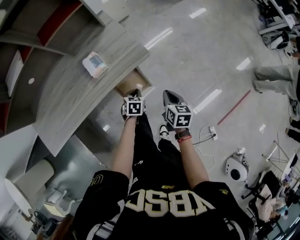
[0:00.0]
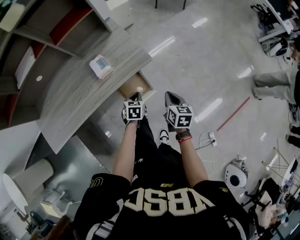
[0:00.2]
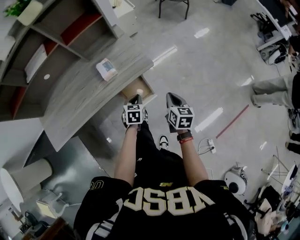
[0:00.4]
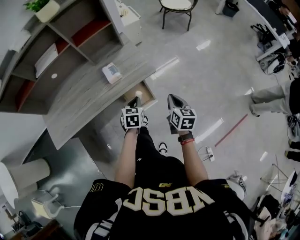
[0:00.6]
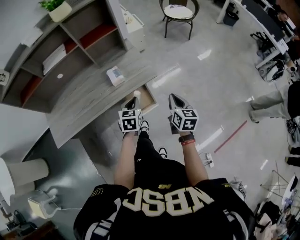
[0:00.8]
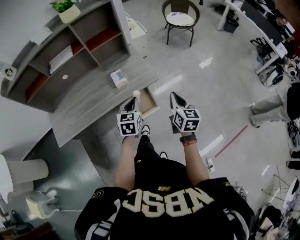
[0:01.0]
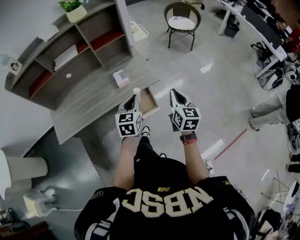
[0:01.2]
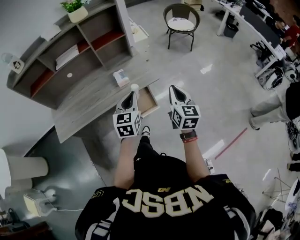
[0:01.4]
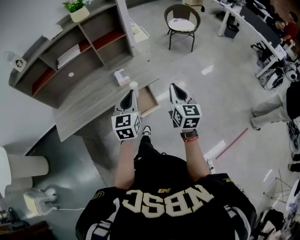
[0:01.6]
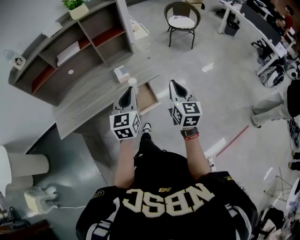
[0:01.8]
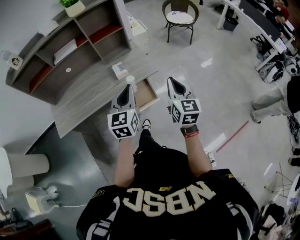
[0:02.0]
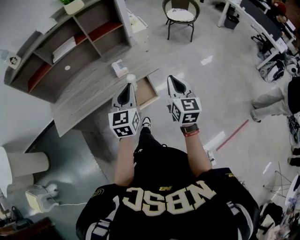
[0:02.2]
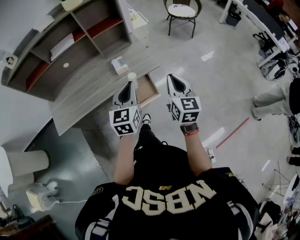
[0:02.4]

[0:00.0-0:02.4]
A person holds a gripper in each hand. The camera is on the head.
0:00.0 to 0:01.2: Both grippers move upward, about 30 cm. The left gripper angles its fingers upward, by roughly 40 degrees; the right gripper swivels some 30 degrees.
0:01.2 to 0:02.4: The left gripper heads upward, covering some 5 cm.

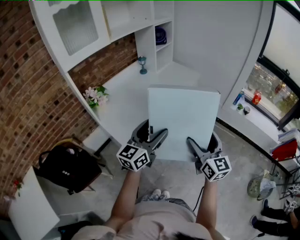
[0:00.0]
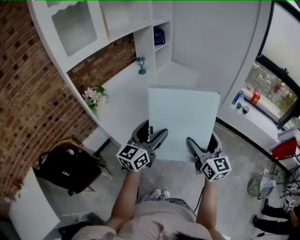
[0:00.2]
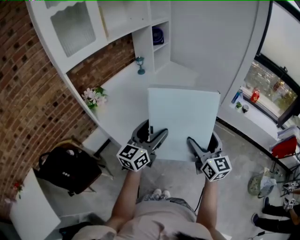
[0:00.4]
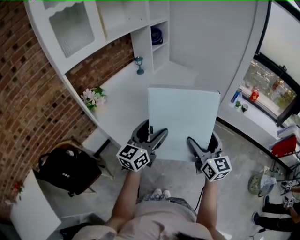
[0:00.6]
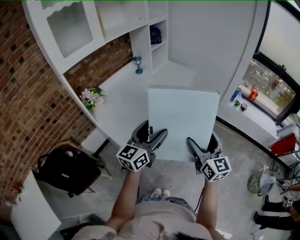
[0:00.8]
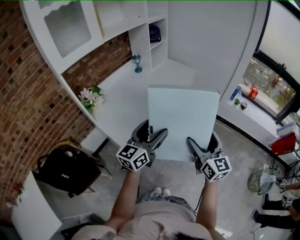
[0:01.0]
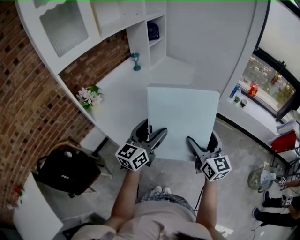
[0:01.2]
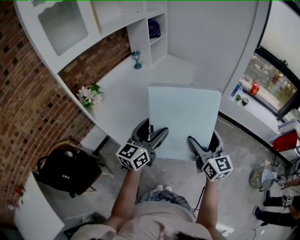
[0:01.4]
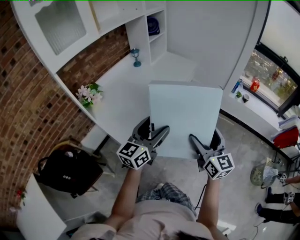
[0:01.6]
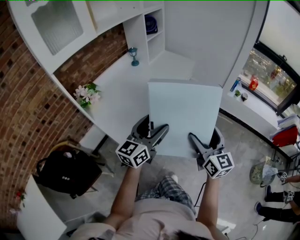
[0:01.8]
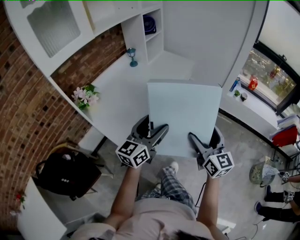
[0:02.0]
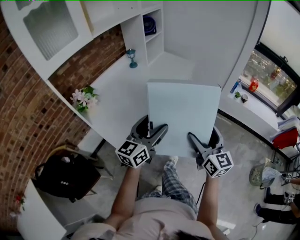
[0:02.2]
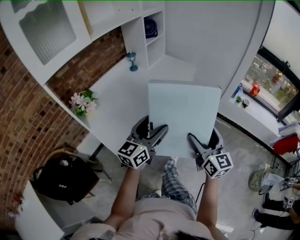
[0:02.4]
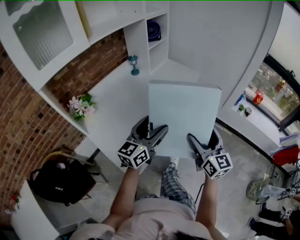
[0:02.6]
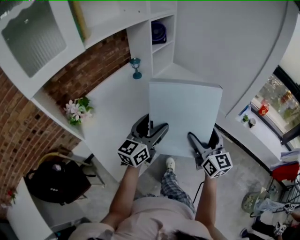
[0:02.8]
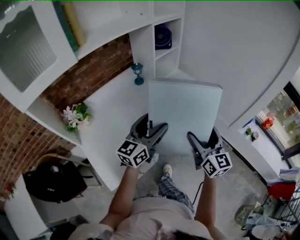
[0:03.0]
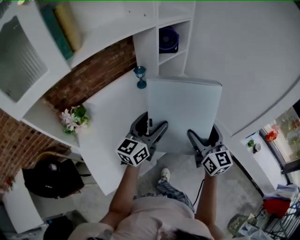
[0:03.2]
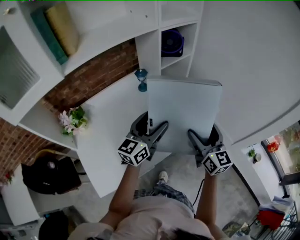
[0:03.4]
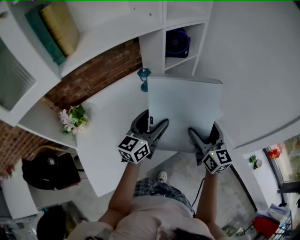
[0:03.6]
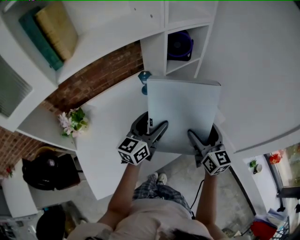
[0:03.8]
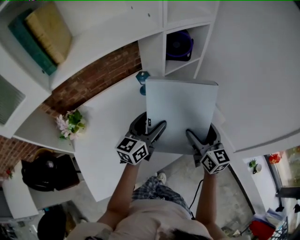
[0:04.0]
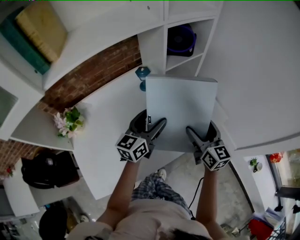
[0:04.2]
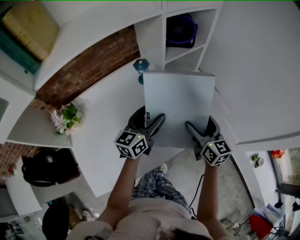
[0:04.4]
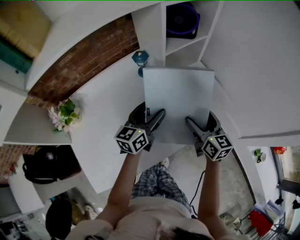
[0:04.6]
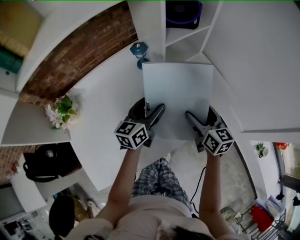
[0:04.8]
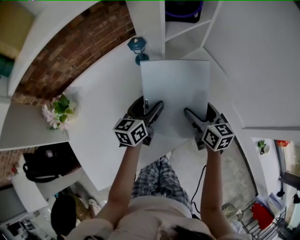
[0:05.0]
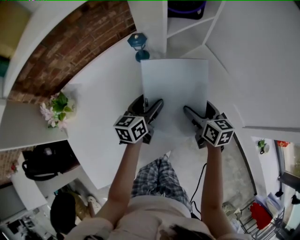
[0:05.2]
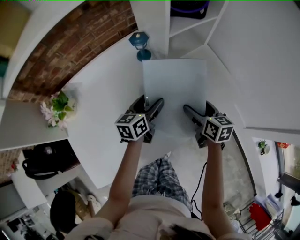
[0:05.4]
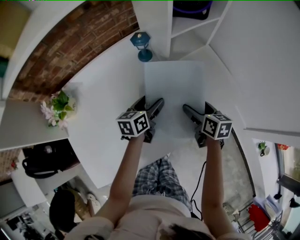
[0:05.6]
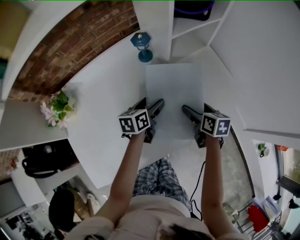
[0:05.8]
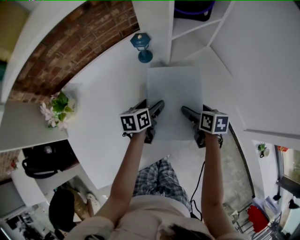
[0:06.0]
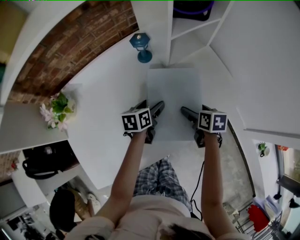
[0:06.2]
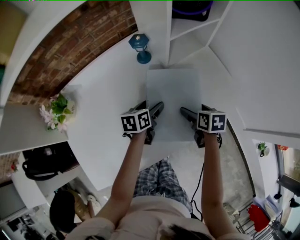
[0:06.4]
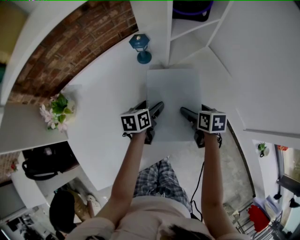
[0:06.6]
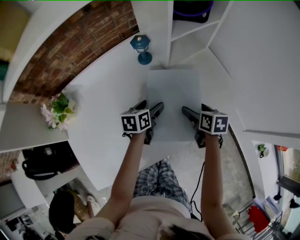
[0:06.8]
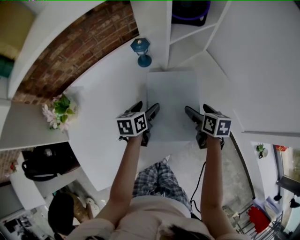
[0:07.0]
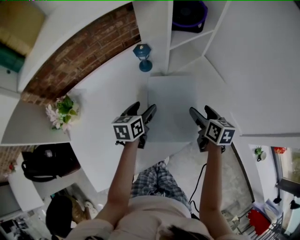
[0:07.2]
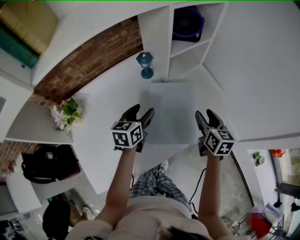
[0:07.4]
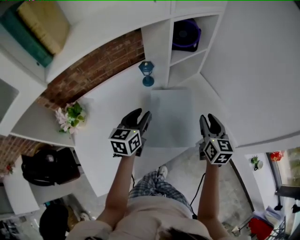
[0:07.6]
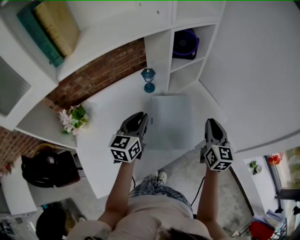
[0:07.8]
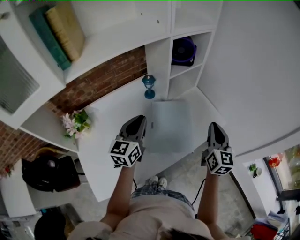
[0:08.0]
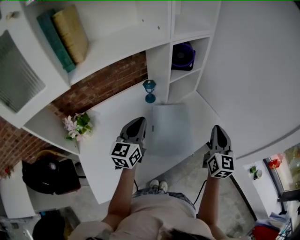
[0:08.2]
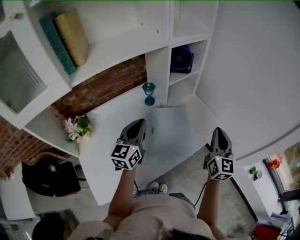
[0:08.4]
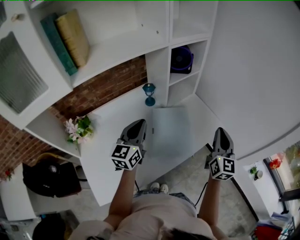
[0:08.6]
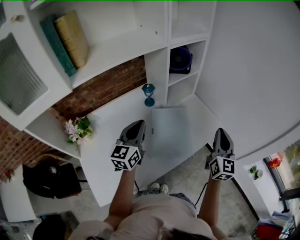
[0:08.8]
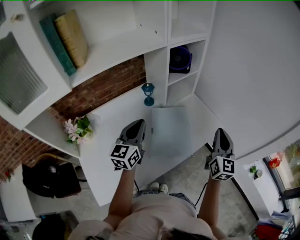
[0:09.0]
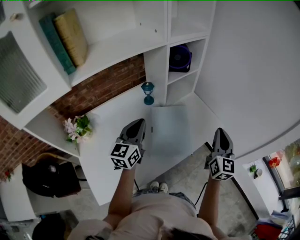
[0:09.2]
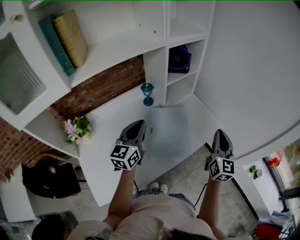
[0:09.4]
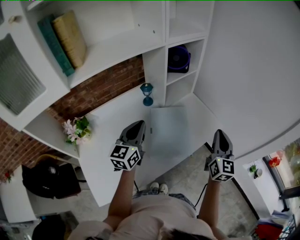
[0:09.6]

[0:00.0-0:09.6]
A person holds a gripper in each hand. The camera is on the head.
0:00.0 to 0:01.6: The grippers make only small movements.
0:01.6 to 0:03.2: Both grippers are carried forward, about 40 cm.
0:03.2 to 0:04.8: Both grippers travel together forward and downward, roughly 25 cm. The right gripper turns by approximately 30 degrees; the left gripper rotates roughly 20 degrees.
0:04.8 to 0:06.4: Both grippers travel together downward, roughly 15 cm. The right gripper tilts its fingers some 30 degrees downward; the left gripper turns by approximately 30 degrees.
0:06.4 to 0:08.0: Both grippers move upward, about 25 cm. The left gripper points its fingers about 40 degrees further upward, and closes; the right gripper tips its fingers upward by some 50 degrees, and closes.
0:08.0 to 0:09.6: The right gripper ends up some 5 cm from where it was.

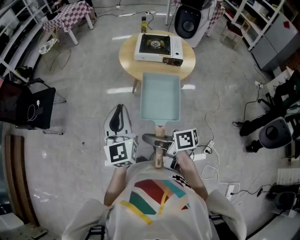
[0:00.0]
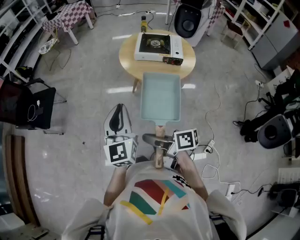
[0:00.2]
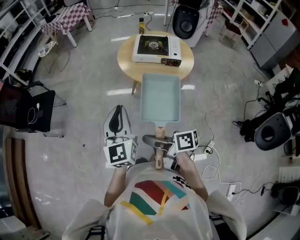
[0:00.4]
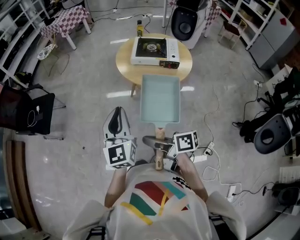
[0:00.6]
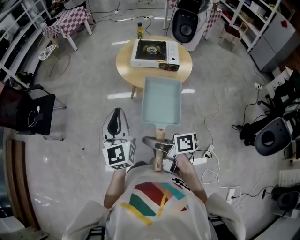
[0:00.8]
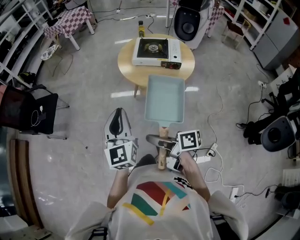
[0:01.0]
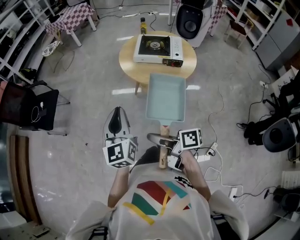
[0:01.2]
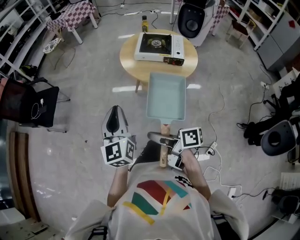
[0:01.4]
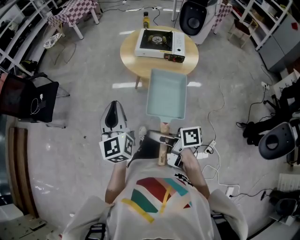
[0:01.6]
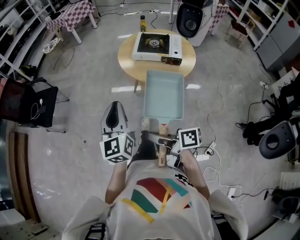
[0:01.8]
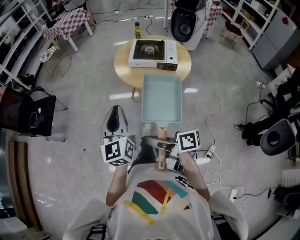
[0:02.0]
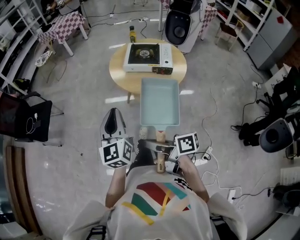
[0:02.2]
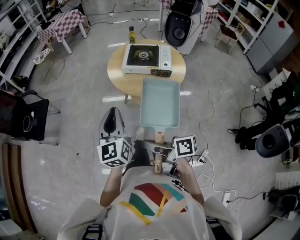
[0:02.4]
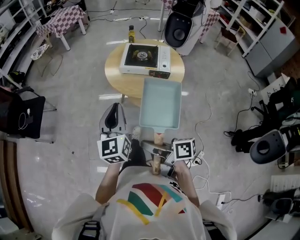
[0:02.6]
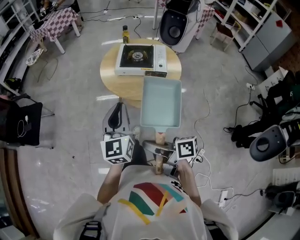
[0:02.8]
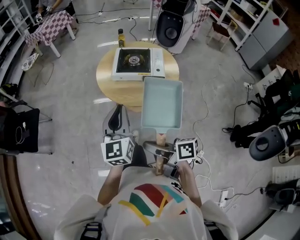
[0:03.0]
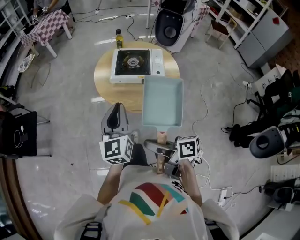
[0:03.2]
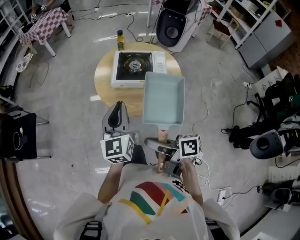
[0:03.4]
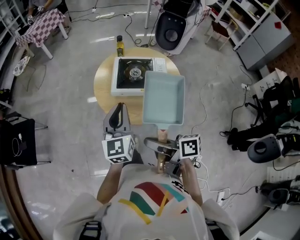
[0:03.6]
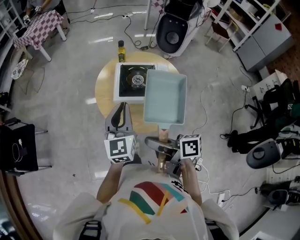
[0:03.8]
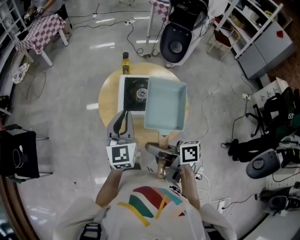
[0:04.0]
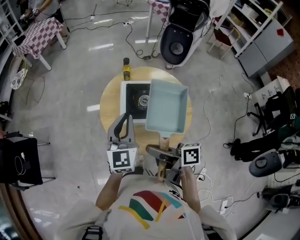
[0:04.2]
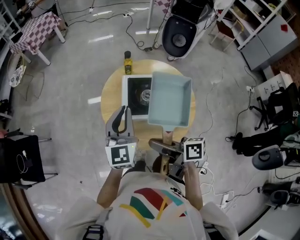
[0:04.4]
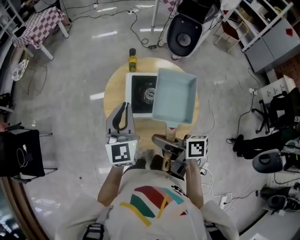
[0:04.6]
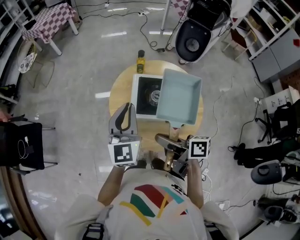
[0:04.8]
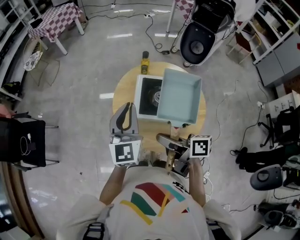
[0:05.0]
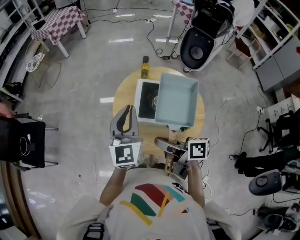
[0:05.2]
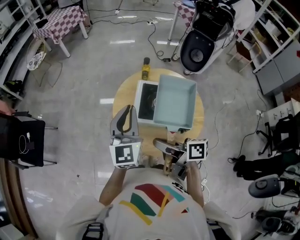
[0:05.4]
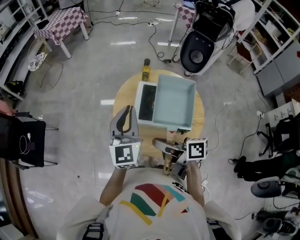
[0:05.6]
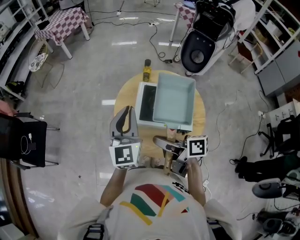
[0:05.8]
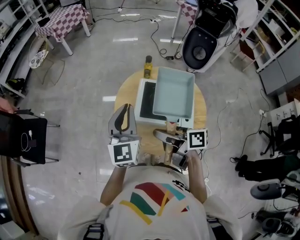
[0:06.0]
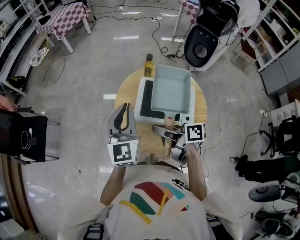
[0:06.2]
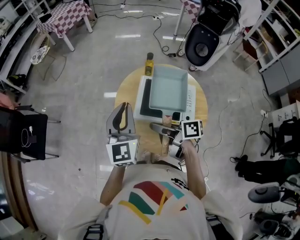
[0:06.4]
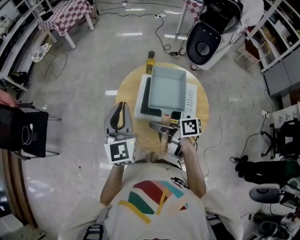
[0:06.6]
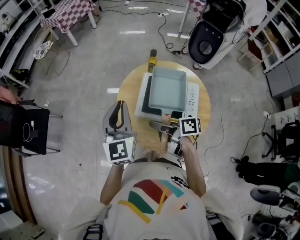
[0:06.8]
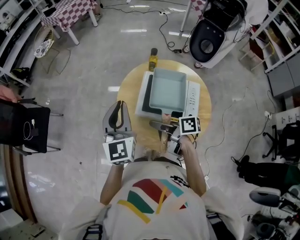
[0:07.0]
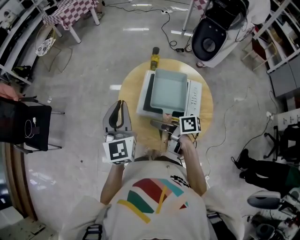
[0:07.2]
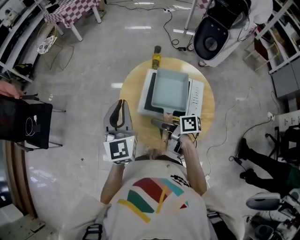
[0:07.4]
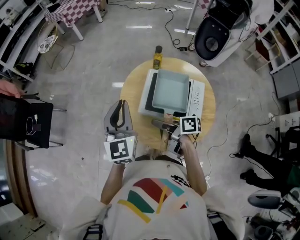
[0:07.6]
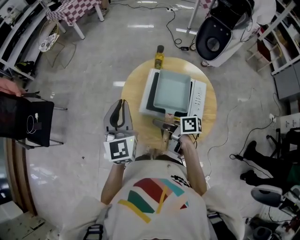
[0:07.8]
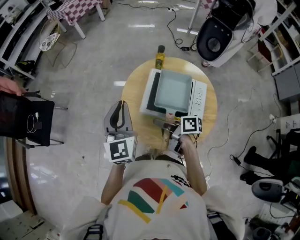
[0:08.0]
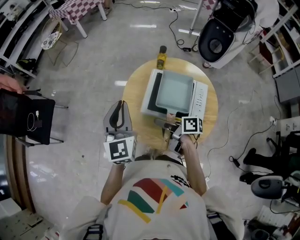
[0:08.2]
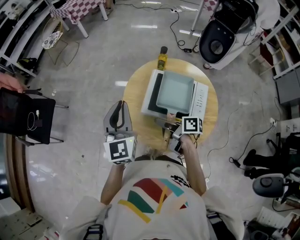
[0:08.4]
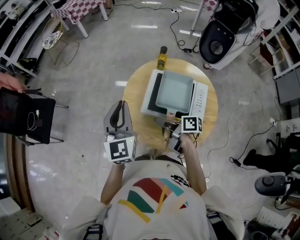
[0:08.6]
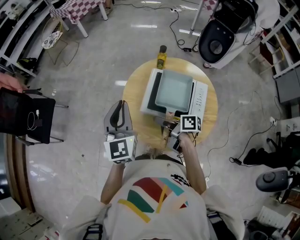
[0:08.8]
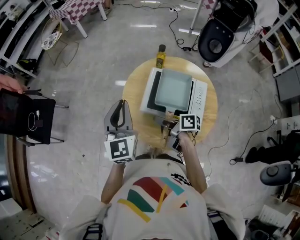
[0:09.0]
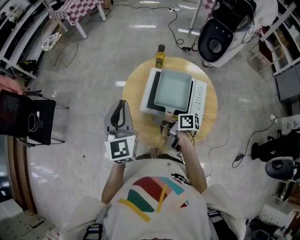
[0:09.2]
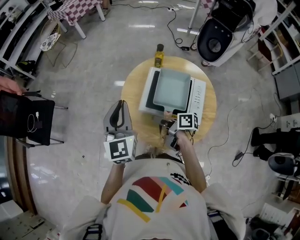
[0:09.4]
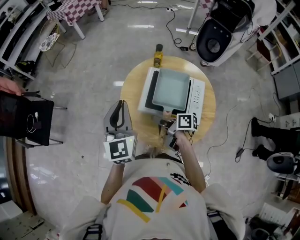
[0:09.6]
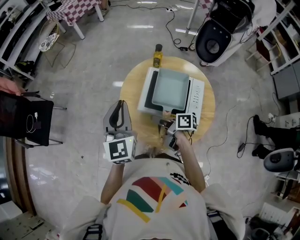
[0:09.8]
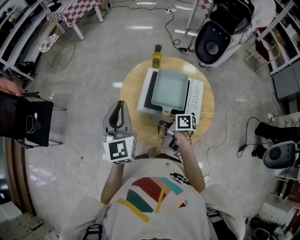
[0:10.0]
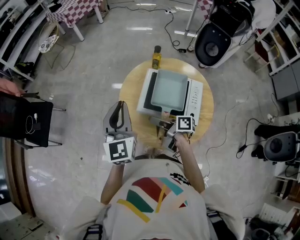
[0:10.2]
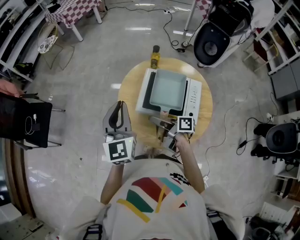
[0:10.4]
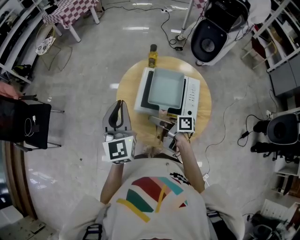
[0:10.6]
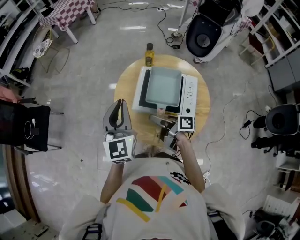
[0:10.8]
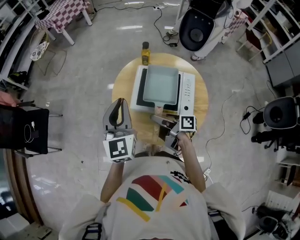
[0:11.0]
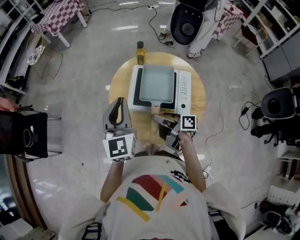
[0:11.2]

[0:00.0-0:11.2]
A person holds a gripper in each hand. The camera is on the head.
0:00.0 to 0:01.6: The right gripper shifts about 5 cm to the right.
0:01.6 to 0:03.2: The grippers both shift to the right and forward by roughly 20 cm.
0:03.2 to 0:04.8: Both grippers move forward, some 30 cm.
0:04.8 to 0:06.4: The right gripper is displaced forward by about 5 cm.
0:06.4 to 0:08.0: The right gripper is displaced downward by about 5 cm.
0:08.0 to 0:09.6: The grippers stay close to where they were, moving slightly.
0:09.6 to 0:11.2: The left gripper moves about 5 cm; the right gripper ends up about 5 cm from where it was, and opens its fingers.
